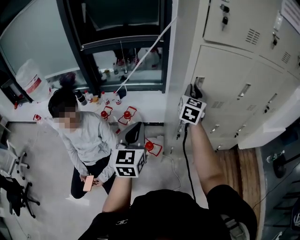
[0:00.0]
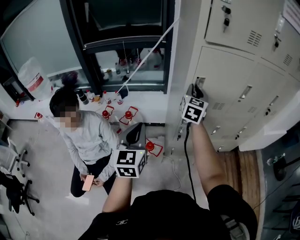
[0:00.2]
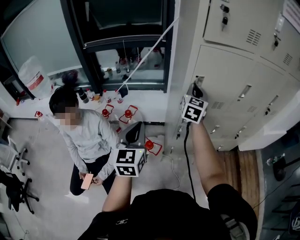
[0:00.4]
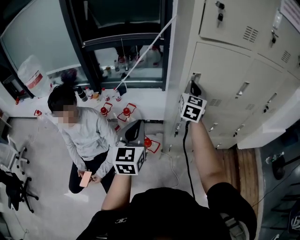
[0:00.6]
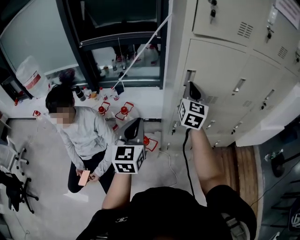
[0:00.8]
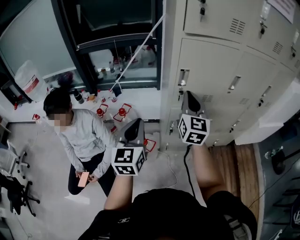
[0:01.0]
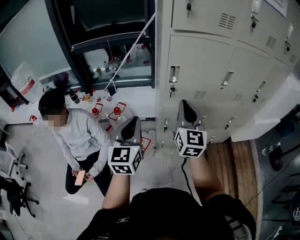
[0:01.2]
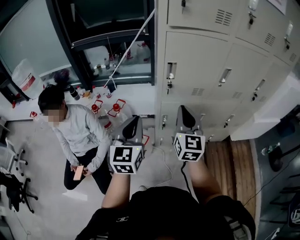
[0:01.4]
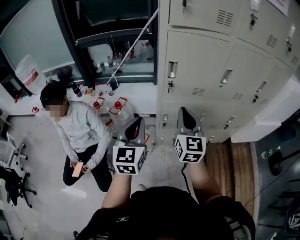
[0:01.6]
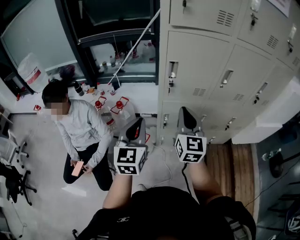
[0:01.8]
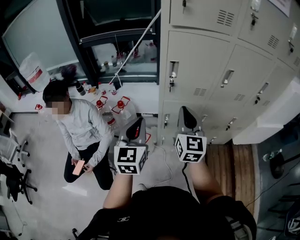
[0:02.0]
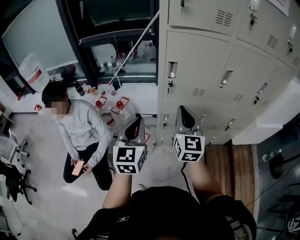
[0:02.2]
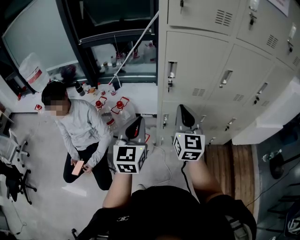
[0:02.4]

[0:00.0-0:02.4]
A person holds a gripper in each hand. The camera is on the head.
0:00.0 to 0:01.2: The left gripper moves to the right, some 10 cm; the right gripper is displaced backward by some 15 cm.
0:01.2 to 0:02.4: The left gripper shifts by approximately 5 cm.

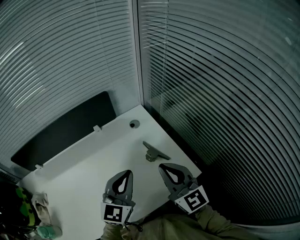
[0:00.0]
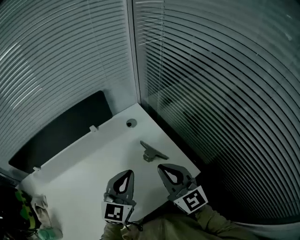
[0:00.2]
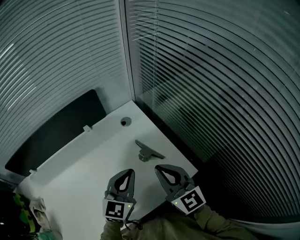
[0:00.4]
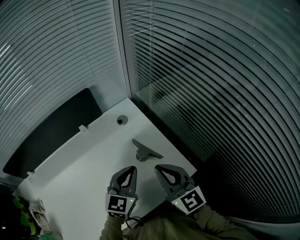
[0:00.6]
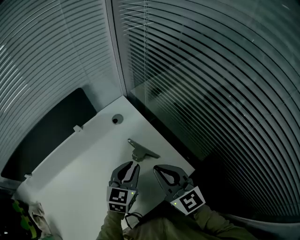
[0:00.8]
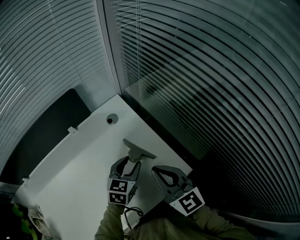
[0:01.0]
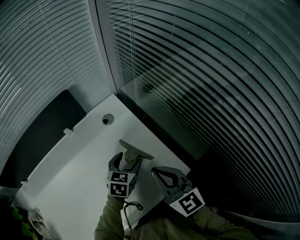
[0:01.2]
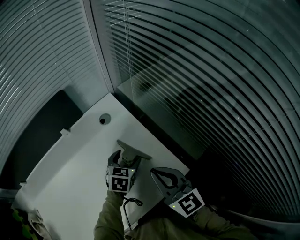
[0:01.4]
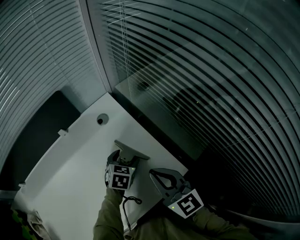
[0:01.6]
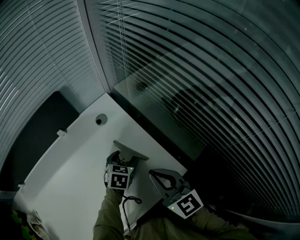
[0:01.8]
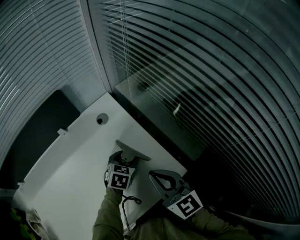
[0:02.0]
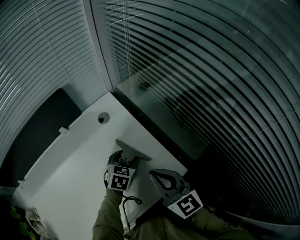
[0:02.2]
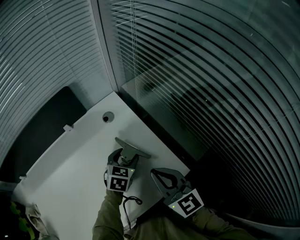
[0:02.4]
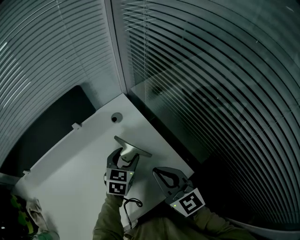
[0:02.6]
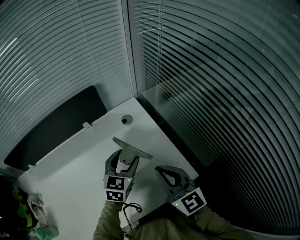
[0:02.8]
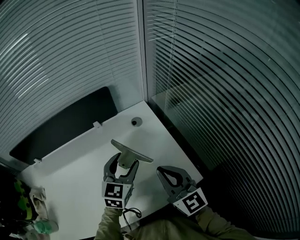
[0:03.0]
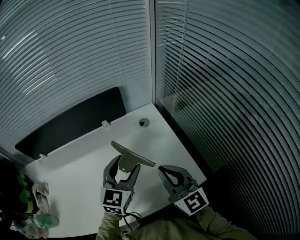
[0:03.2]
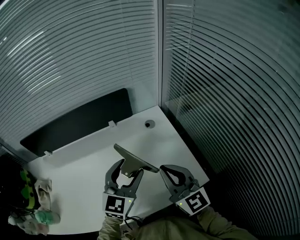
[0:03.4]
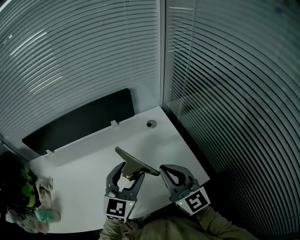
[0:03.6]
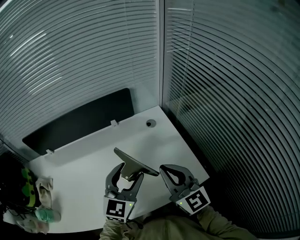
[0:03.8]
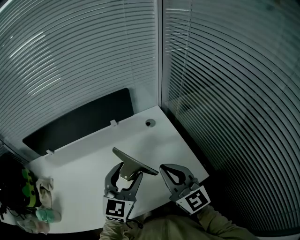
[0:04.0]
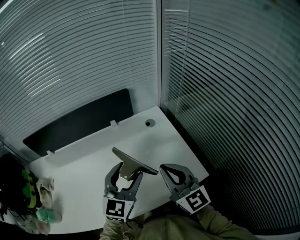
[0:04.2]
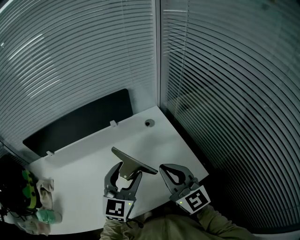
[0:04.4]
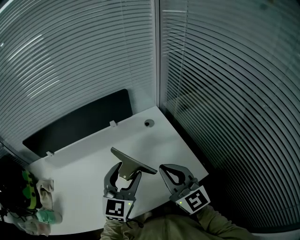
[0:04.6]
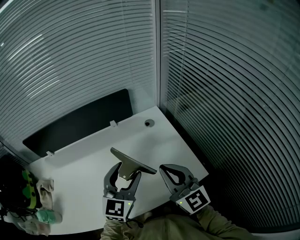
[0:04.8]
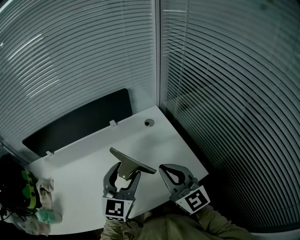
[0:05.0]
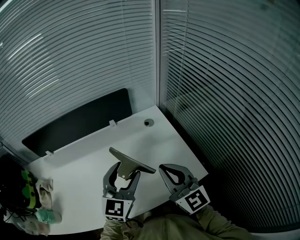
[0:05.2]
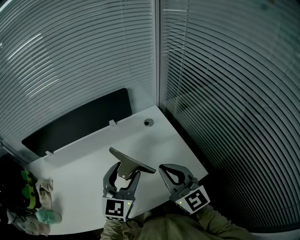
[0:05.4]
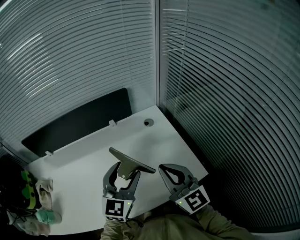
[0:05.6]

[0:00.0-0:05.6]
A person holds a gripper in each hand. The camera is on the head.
0:00.0 to 0:01.4: The right gripper heads downward and to the right, covering roughly 10 cm, while the left gripper is displaced downward and forward by roughly 30 cm, angles its fingers downward, by roughly 40 degrees, and opens up.
0:01.4 to 0:02.8: The right gripper moves upward, about 5 cm; the left gripper goes some 15 cm upward and to the left, and swivels some 20 degrees.
0:02.8 to 0:04.2: The left gripper travels upward, backward and to the left by some 20 cm, and swivels about 20 degrees; the right gripper heads upward and to the left, covering approximately 10 cm.
0:04.2 to 0:05.6: Both grippers stay about where they are.

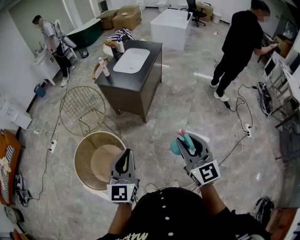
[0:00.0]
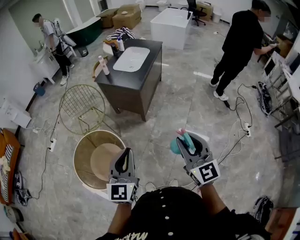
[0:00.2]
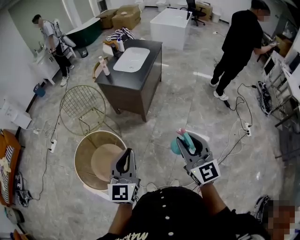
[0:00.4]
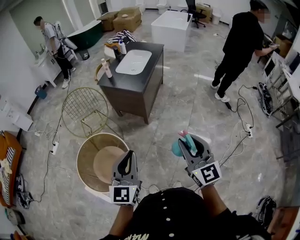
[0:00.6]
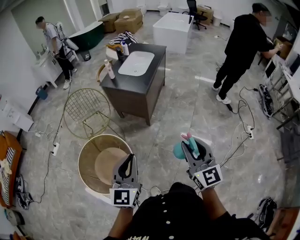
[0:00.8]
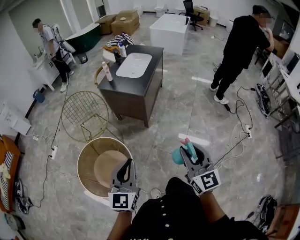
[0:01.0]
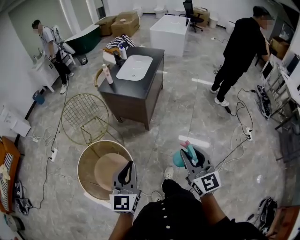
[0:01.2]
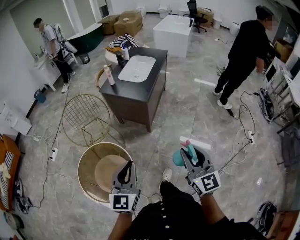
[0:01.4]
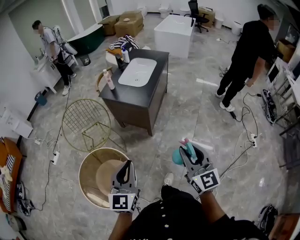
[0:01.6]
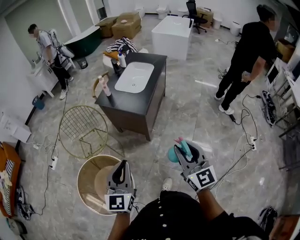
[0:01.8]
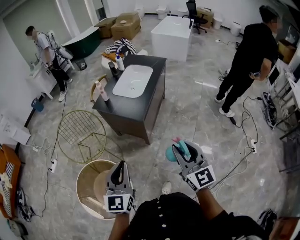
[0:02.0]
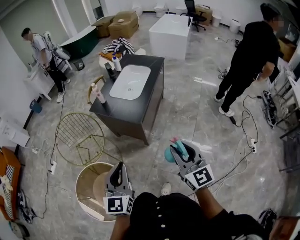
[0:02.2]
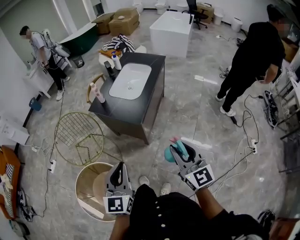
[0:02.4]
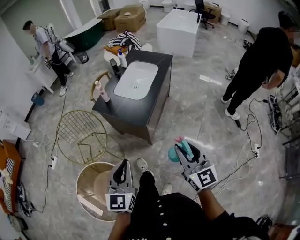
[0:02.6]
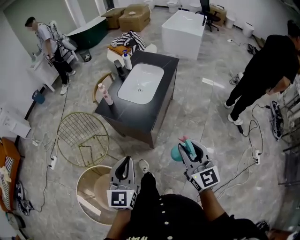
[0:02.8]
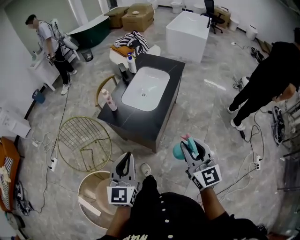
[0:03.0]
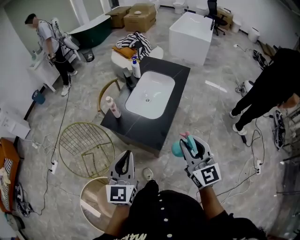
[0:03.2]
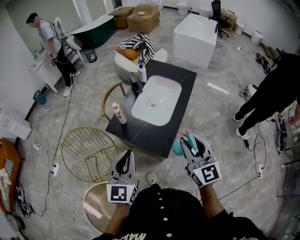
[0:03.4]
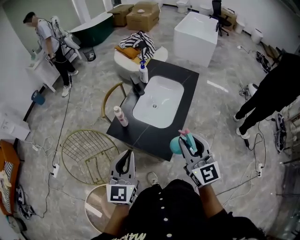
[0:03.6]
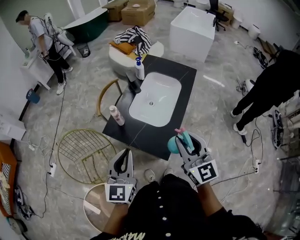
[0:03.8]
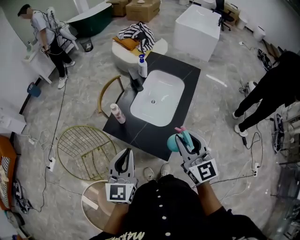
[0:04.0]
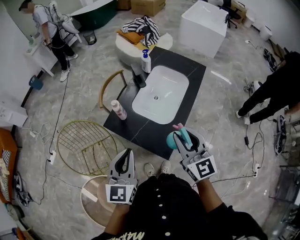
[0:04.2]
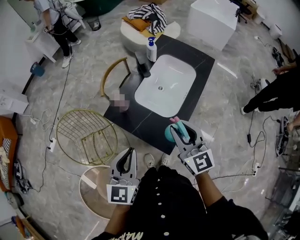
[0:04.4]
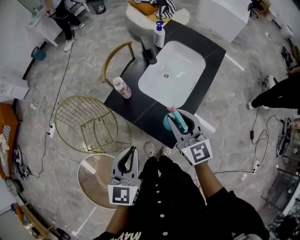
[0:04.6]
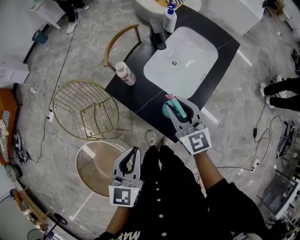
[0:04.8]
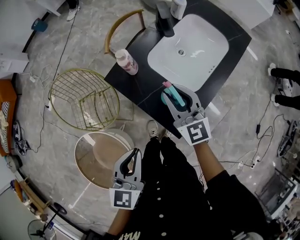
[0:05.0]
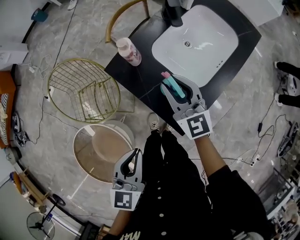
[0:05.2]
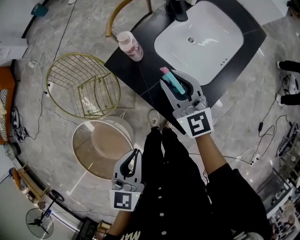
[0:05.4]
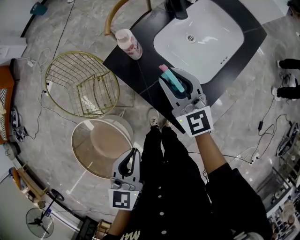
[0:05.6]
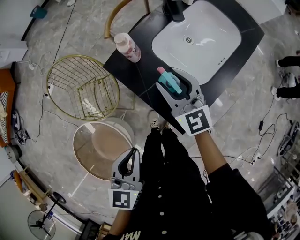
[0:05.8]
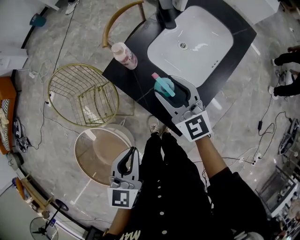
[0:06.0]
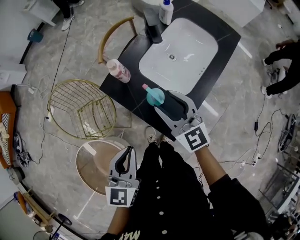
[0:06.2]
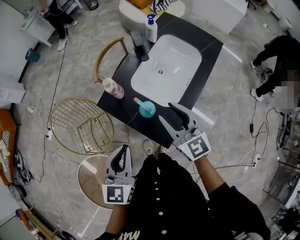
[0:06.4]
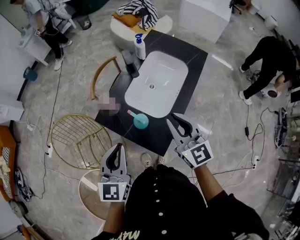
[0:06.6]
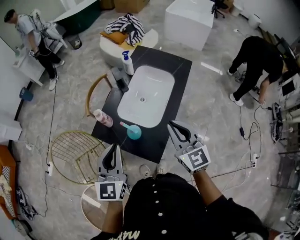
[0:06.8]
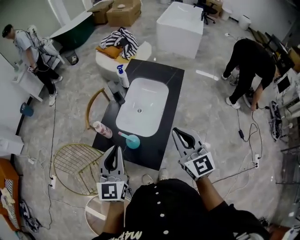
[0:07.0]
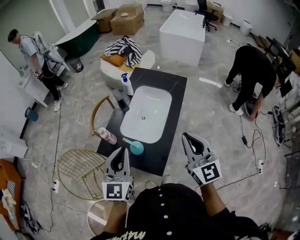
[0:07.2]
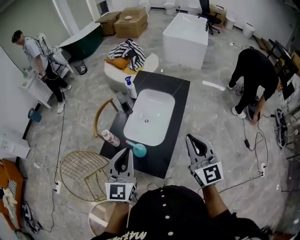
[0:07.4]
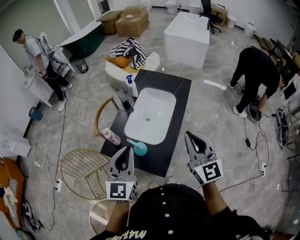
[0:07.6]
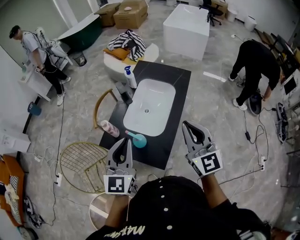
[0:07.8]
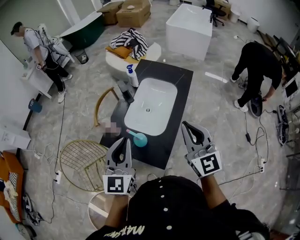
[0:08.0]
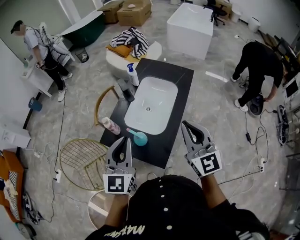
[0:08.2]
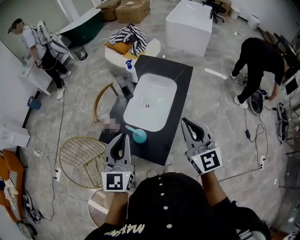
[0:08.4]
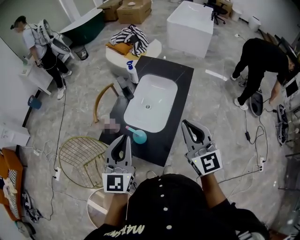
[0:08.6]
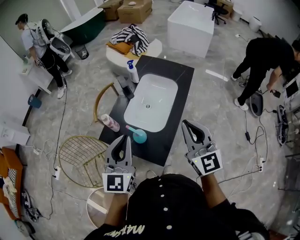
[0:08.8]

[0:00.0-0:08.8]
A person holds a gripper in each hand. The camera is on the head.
0:00.0 to 0:01.4: The left gripper travels to the left by some 5 cm. The right gripper moves roughly 5 cm.
0:01.4 to 0:03.0: The grippers both shift forward by some 40 cm.
0:03.0 to 0:04.4: The left gripper travels forward by some 20 cm. The right gripper shifts approximately 25 cm forward and to the left.
0:04.4 to 0:05.8: The left gripper shifts roughly 15 cm downward and backward, and rotates roughly 20 degrees, while the right gripper is displaced downward, forward and to the left by roughly 20 cm.
0:05.8 to 0:07.4: The left gripper heads upward, covering approximately 20 cm, and changes its angle by about 40 degrees, while the right gripper changes place by approximately 35 cm, swivels approximately 40 degrees, and closes.
0:07.4 to 0:08.8: The grippers make only small movements.

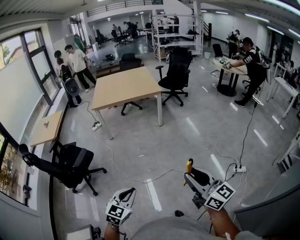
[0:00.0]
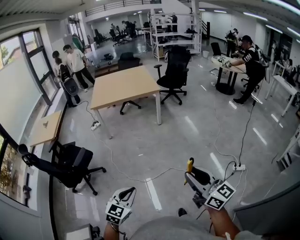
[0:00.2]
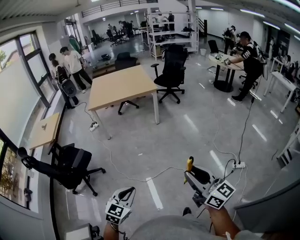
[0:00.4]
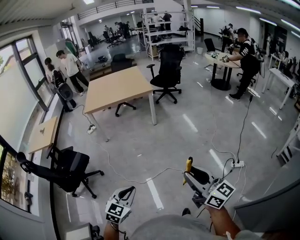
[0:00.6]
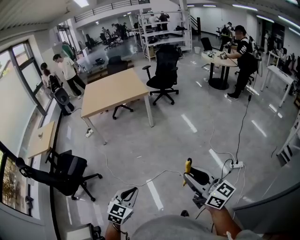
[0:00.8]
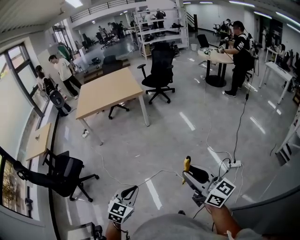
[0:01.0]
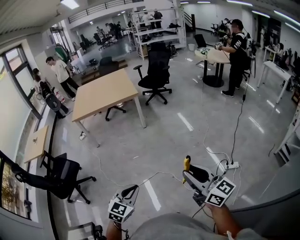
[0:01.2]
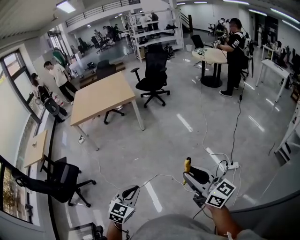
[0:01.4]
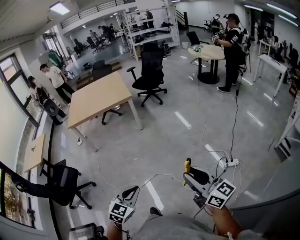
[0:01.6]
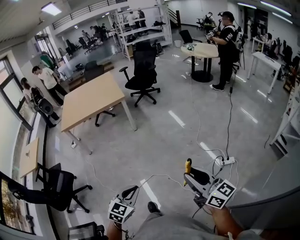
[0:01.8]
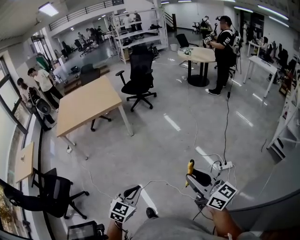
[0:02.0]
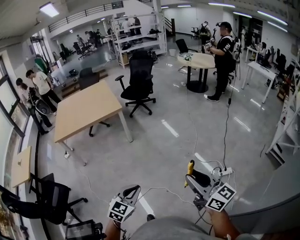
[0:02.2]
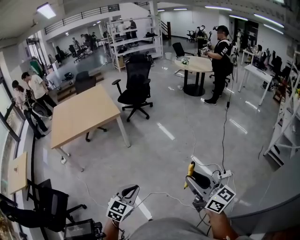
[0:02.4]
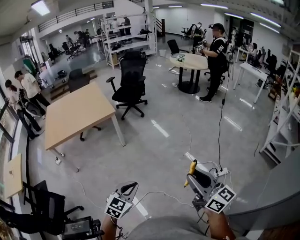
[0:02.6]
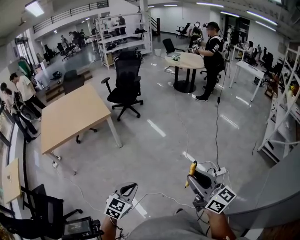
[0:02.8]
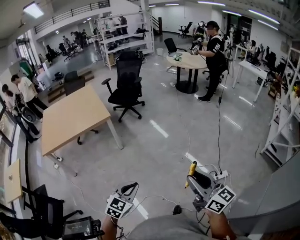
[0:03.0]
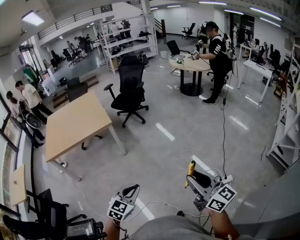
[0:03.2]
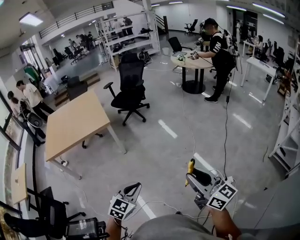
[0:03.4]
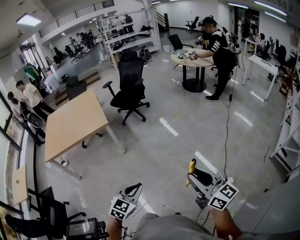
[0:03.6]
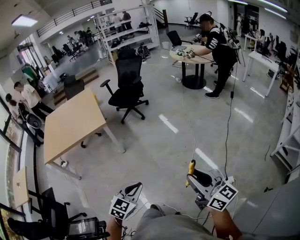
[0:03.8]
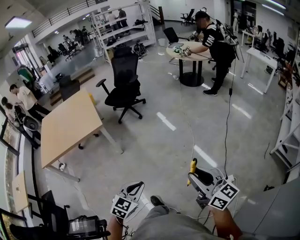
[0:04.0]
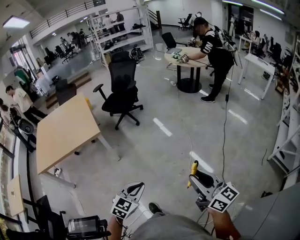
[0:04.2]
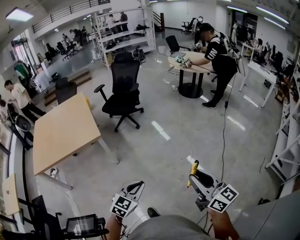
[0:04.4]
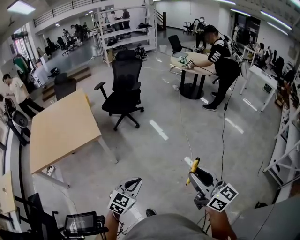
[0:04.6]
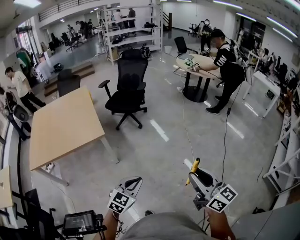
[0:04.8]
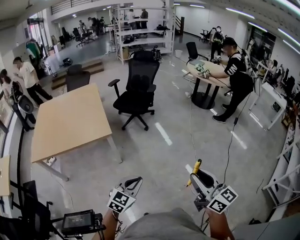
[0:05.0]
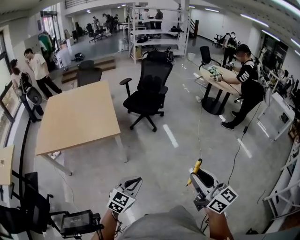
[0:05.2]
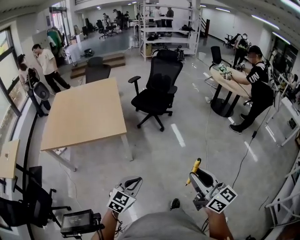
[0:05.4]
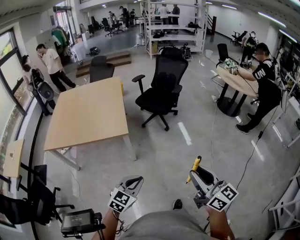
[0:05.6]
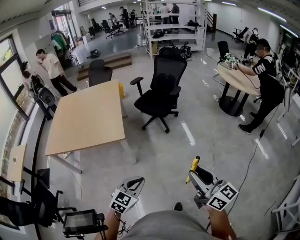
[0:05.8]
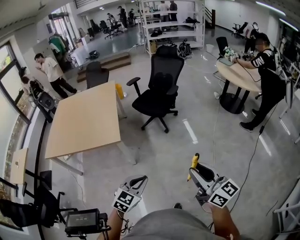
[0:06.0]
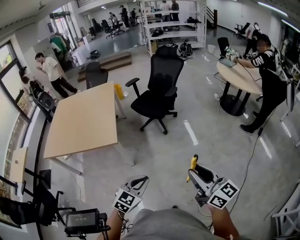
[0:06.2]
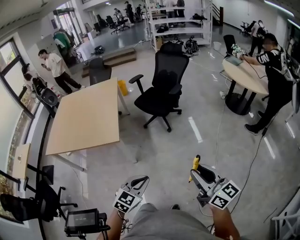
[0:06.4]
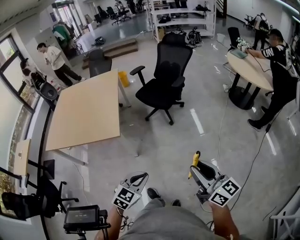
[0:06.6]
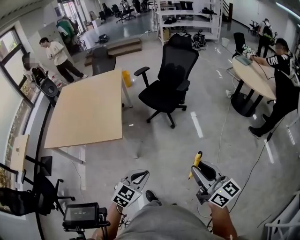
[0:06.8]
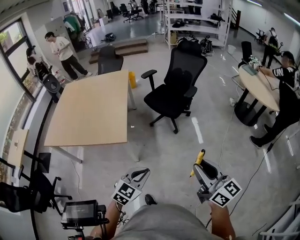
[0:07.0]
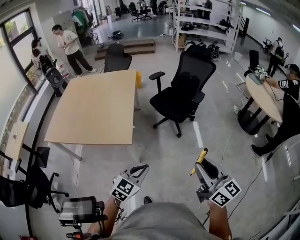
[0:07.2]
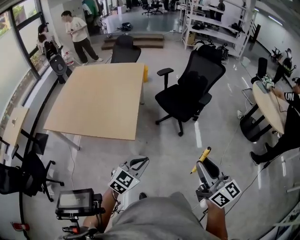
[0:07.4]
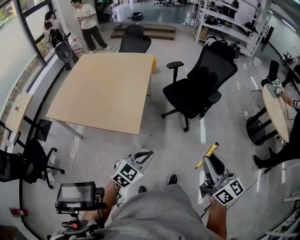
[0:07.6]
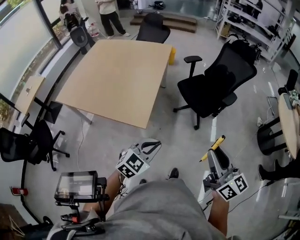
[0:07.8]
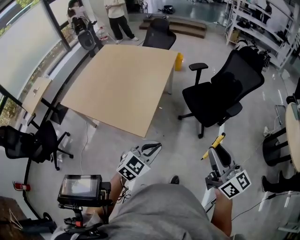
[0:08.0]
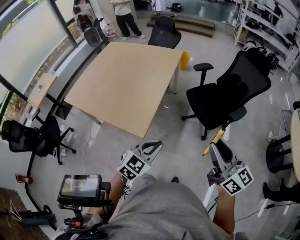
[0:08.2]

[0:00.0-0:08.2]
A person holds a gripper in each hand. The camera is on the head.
0:00.0 to 0:01.6: The right gripper goes some 25 cm to the right, while the left gripper goes some 30 cm to the right and forward.
0:01.6 to 0:03.2: Both grippers travel together forward, about 30 cm.
0:03.2 to 0:05.0: The grippers both shift forward by approximately 35 cm.
0:05.0 to 0:06.6: The left gripper travels forward and to the right by some 25 cm. The right gripper shifts approximately 30 cm forward, and changes its angle by roughly 20 degrees.
0:06.6 to 0:08.2: The two grippers go roughly 40 cm forward. The left gripper changes its angle by some 20 degrees, while the right gripper swivels approximately 20 degrees.
